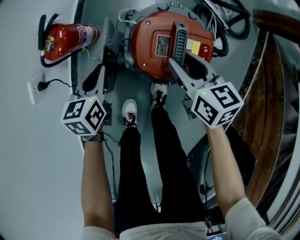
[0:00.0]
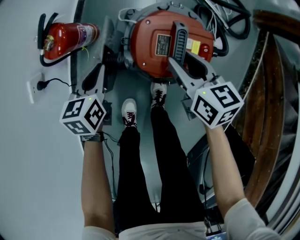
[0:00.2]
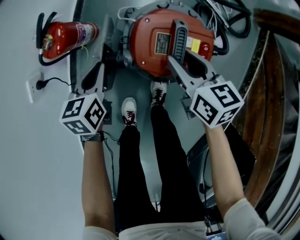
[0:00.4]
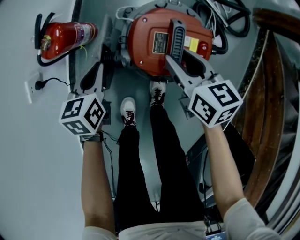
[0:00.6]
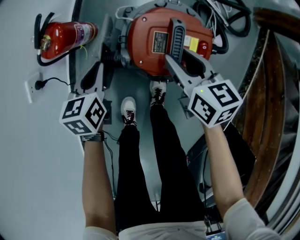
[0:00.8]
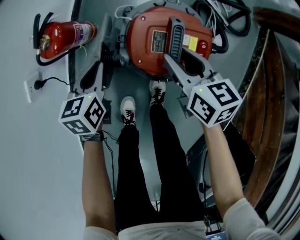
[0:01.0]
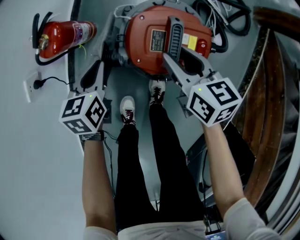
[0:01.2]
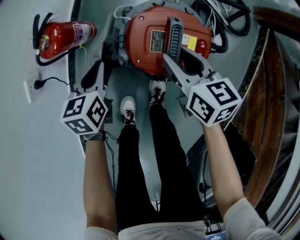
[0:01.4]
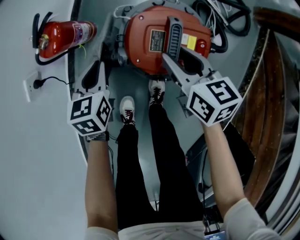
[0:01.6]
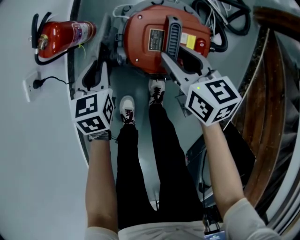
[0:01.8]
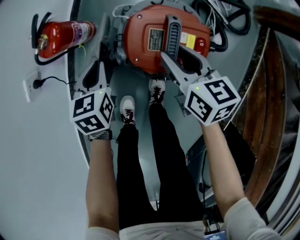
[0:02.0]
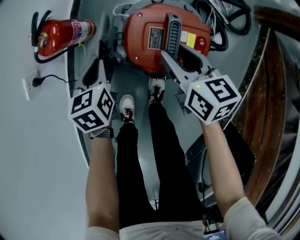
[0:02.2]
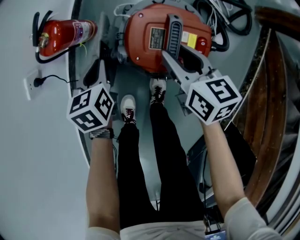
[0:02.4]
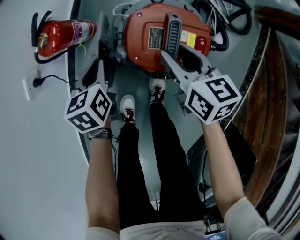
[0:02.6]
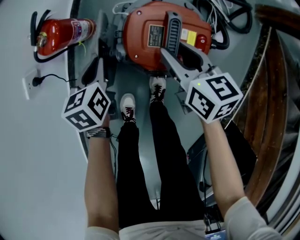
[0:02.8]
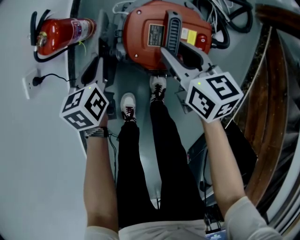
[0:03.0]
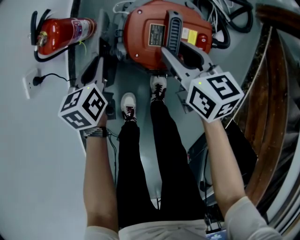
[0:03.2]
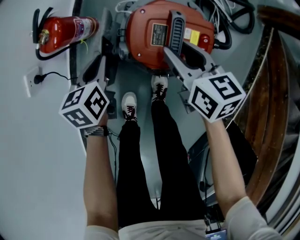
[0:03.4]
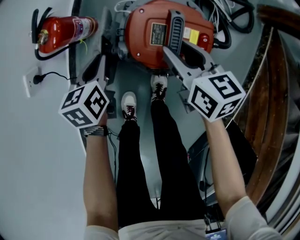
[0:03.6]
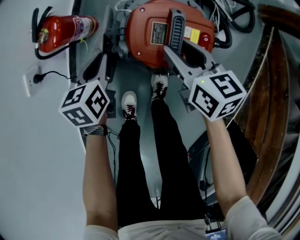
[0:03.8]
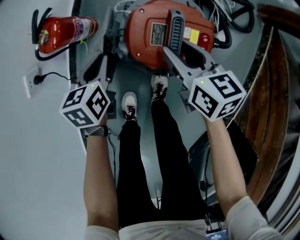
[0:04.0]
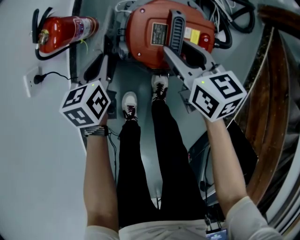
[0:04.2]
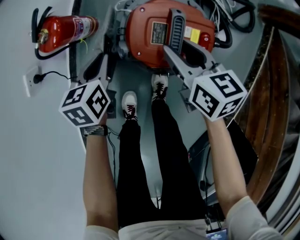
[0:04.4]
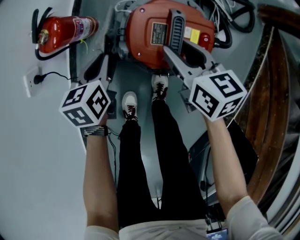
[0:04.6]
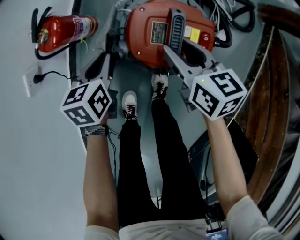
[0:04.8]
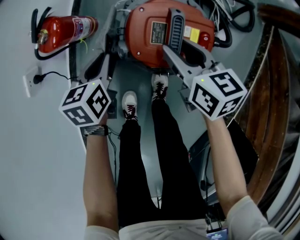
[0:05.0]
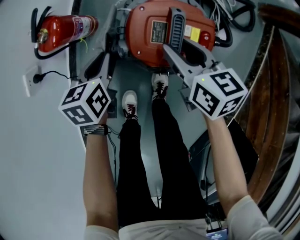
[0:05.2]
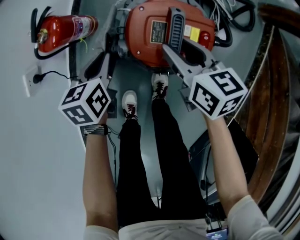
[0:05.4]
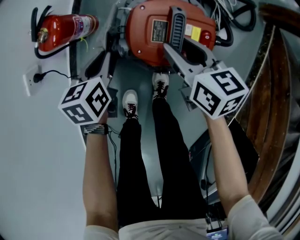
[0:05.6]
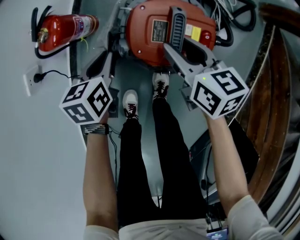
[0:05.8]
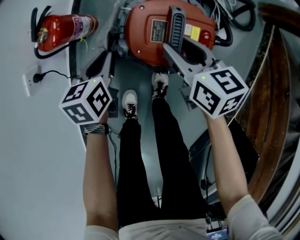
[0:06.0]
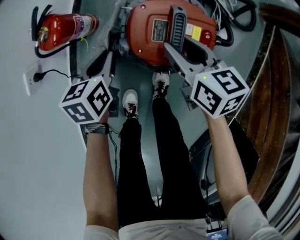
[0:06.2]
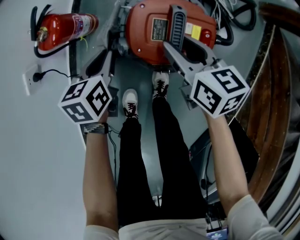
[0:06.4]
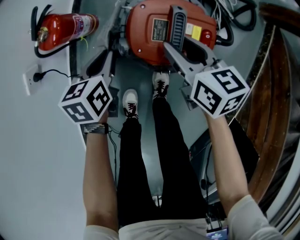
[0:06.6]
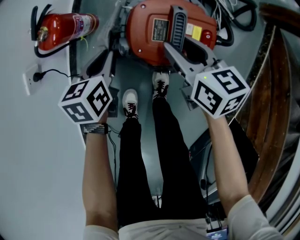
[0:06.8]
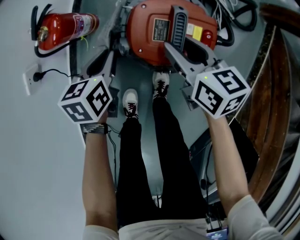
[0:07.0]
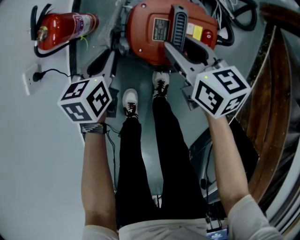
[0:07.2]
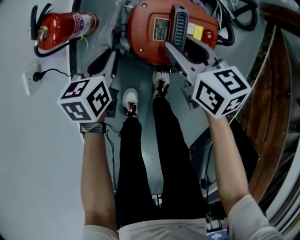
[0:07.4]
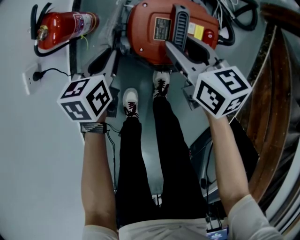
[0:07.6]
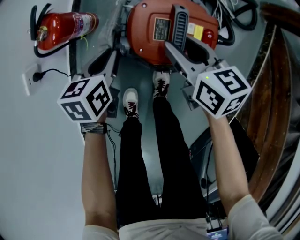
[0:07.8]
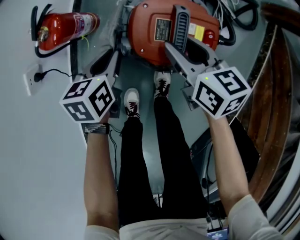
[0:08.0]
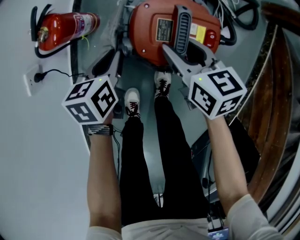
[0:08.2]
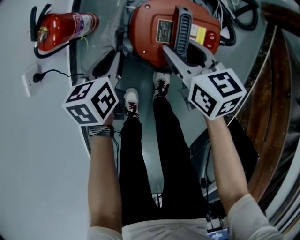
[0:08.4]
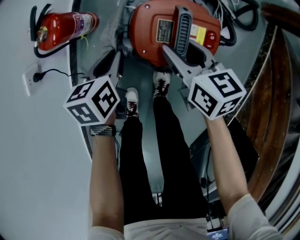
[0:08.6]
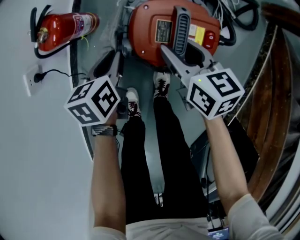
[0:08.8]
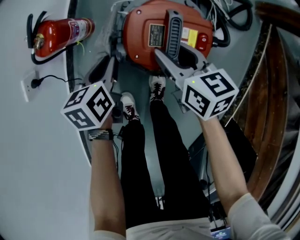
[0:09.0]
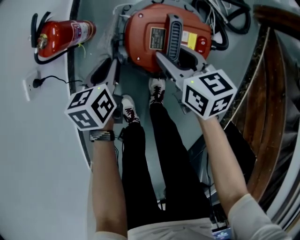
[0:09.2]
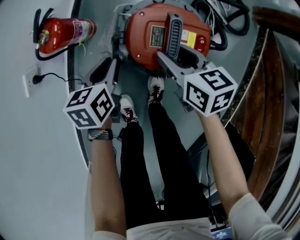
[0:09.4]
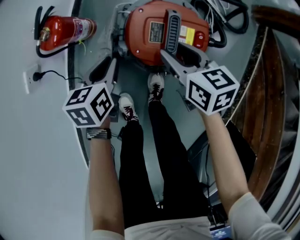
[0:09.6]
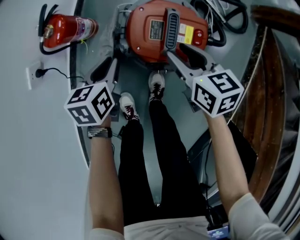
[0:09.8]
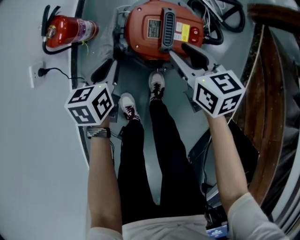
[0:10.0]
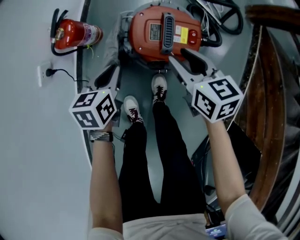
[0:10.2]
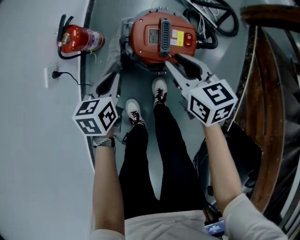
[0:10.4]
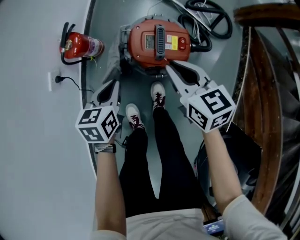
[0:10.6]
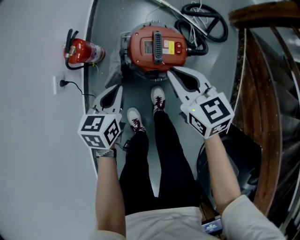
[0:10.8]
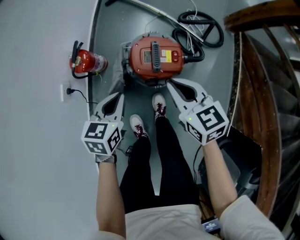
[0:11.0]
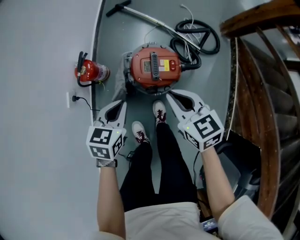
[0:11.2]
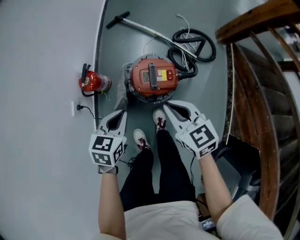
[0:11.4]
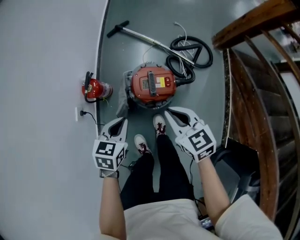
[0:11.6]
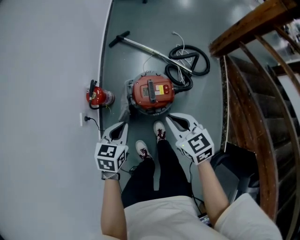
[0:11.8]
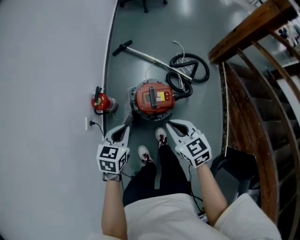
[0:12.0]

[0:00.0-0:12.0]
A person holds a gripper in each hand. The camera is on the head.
0:00.0 to 0:03.0: The grippers make only small movements.
0:03.0 to 0:04.4: Neither gripper changes place.
0:04.4 to 0:06.0: Both grippers stay put.
0:06.0 to 0:09.0: The grippers make only small movements.
0:09.0 to 0:10.4: The left gripper is displaced upward and backward by about 10 cm. The right gripper shifts some 10 cm upward.
0:10.4 to 0:12.0: Both grippers travel together upward, about 25 cm. The right gripper closes up; the left gripper swivels roughly 30 degrees.

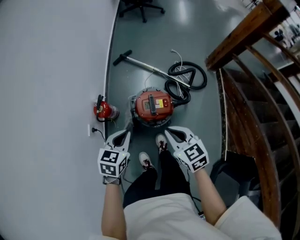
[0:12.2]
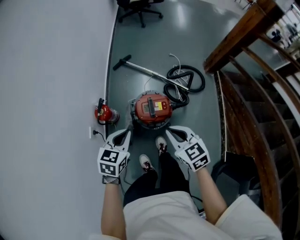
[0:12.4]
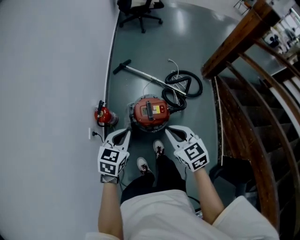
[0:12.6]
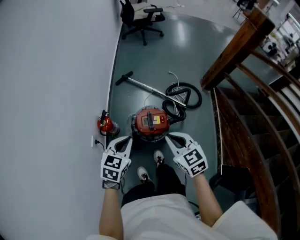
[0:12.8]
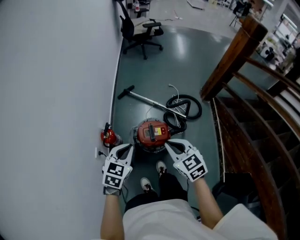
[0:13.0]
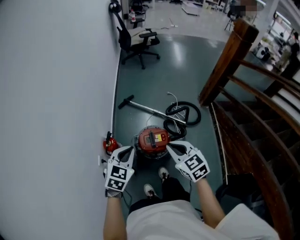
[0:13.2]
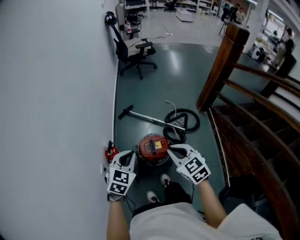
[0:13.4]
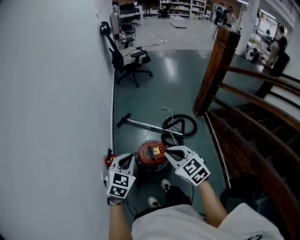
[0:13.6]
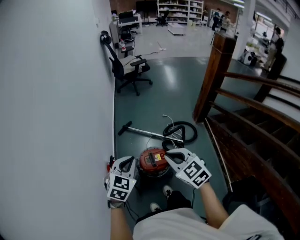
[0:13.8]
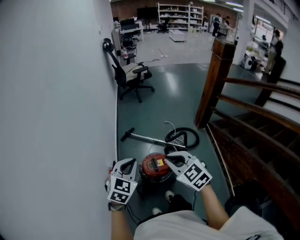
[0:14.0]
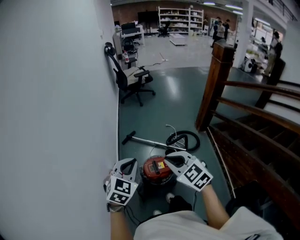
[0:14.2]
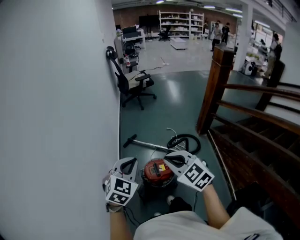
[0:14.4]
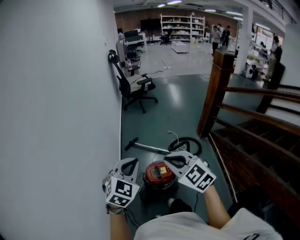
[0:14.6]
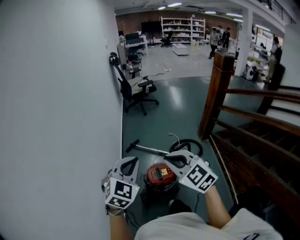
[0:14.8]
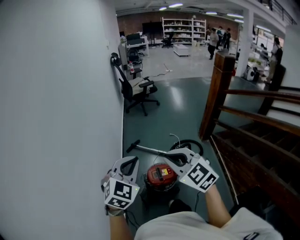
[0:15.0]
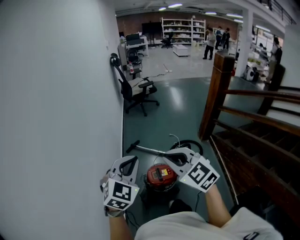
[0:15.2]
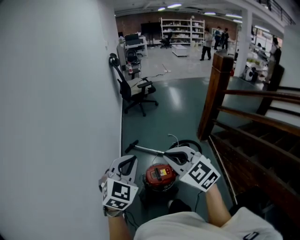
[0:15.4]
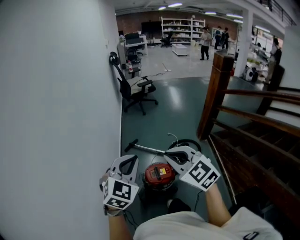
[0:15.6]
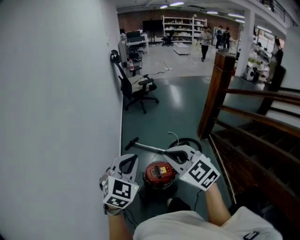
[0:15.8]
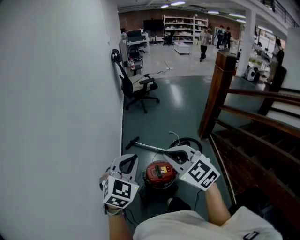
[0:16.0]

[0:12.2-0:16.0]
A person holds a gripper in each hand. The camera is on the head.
0:12.2 to 0:13.4: Both grippers travel together upward, about 15 cm. The left gripper turns by roughly 30 degrees.
0:13.4 to 0:14.8: Both grippers travel together upward, some 20 cm. The right gripper turns by about 20 degrees; the left gripper turns by about 20 degrees.
0:14.8 to 0:16.0: The grippers make only small movements.

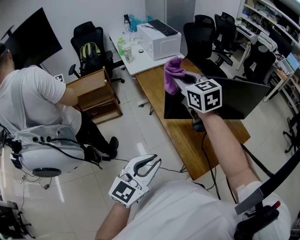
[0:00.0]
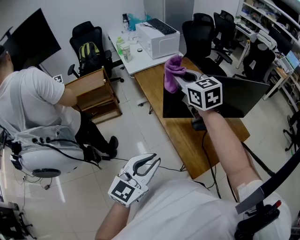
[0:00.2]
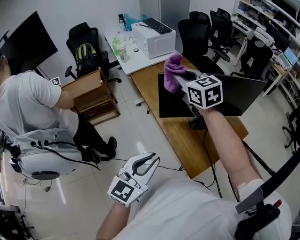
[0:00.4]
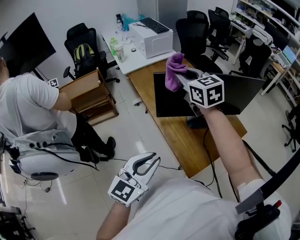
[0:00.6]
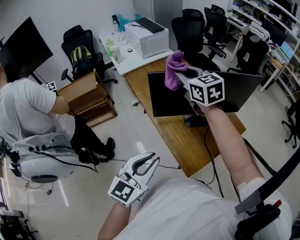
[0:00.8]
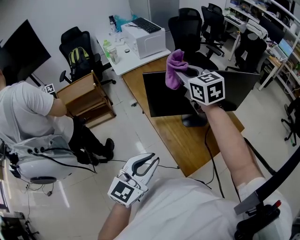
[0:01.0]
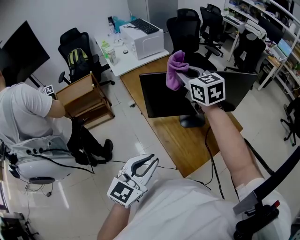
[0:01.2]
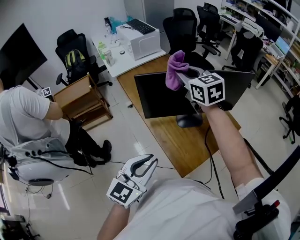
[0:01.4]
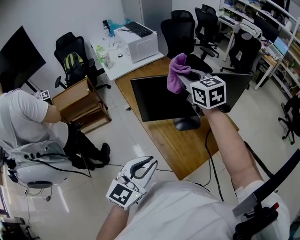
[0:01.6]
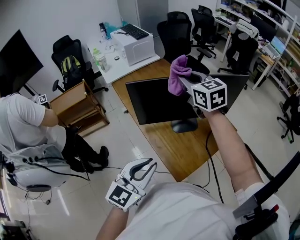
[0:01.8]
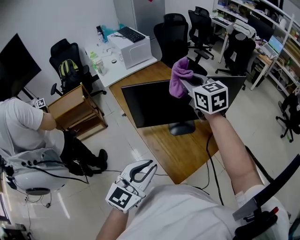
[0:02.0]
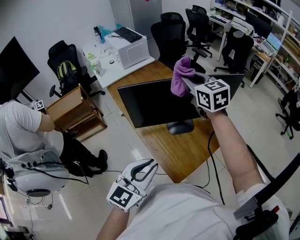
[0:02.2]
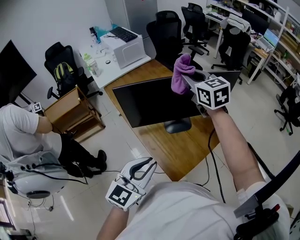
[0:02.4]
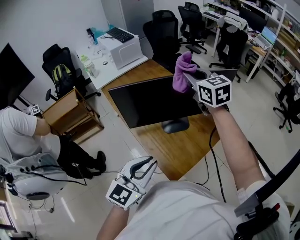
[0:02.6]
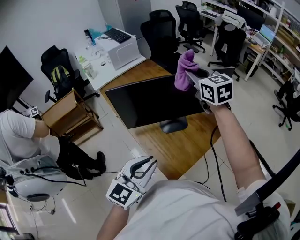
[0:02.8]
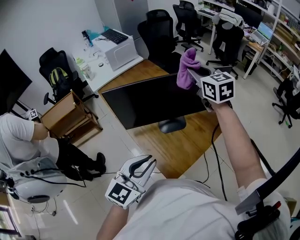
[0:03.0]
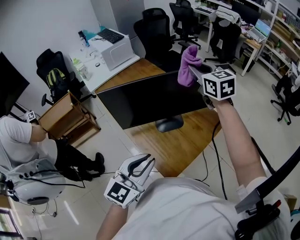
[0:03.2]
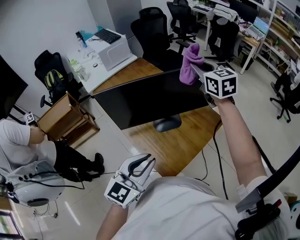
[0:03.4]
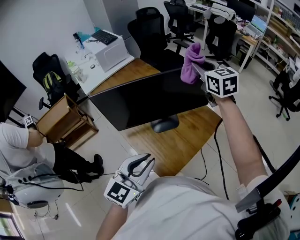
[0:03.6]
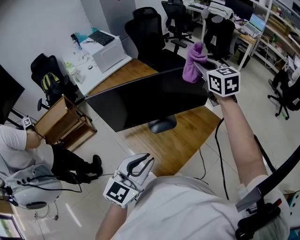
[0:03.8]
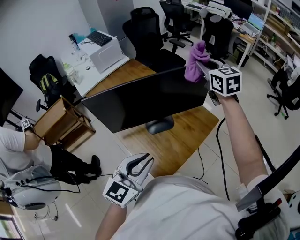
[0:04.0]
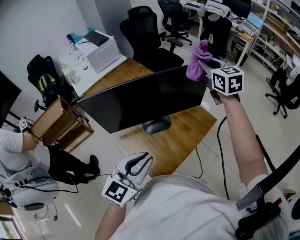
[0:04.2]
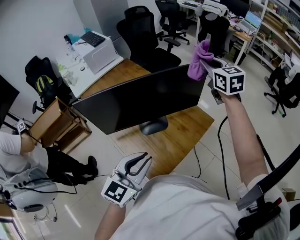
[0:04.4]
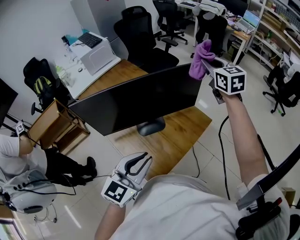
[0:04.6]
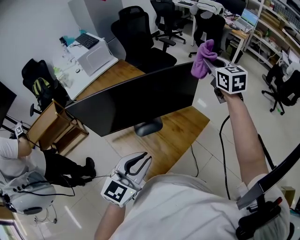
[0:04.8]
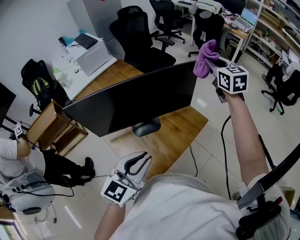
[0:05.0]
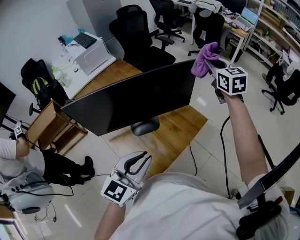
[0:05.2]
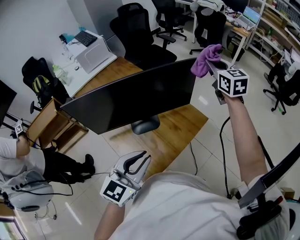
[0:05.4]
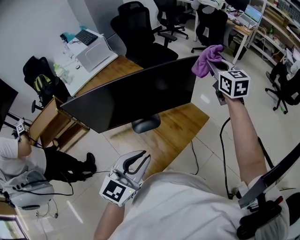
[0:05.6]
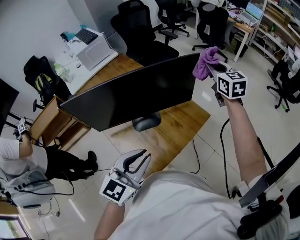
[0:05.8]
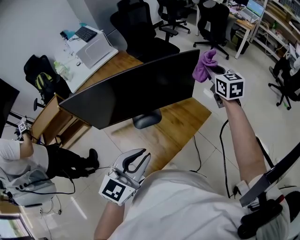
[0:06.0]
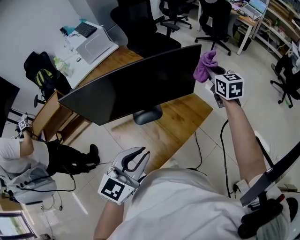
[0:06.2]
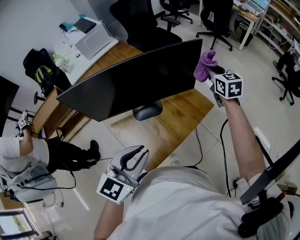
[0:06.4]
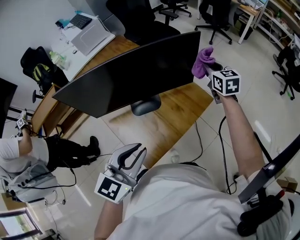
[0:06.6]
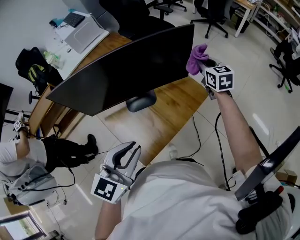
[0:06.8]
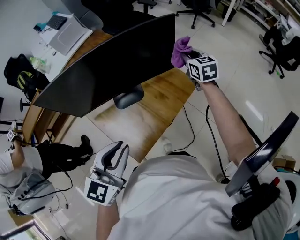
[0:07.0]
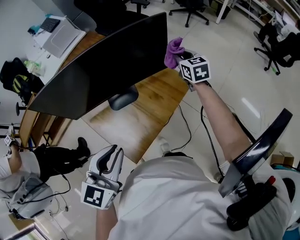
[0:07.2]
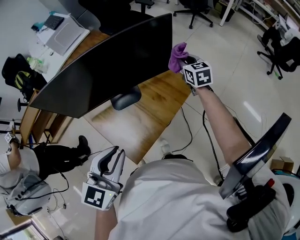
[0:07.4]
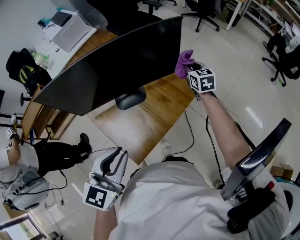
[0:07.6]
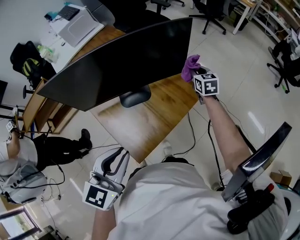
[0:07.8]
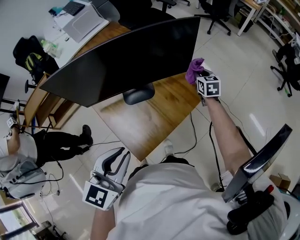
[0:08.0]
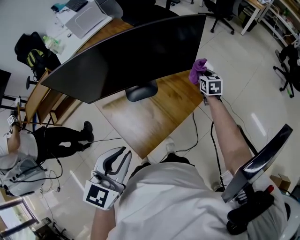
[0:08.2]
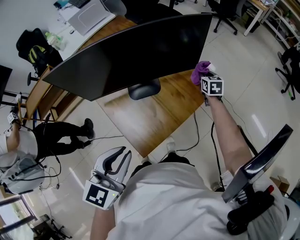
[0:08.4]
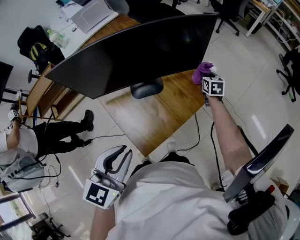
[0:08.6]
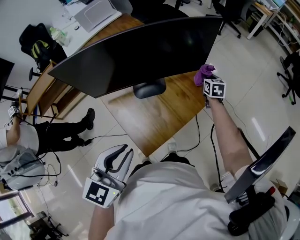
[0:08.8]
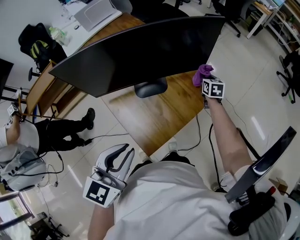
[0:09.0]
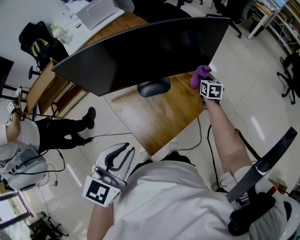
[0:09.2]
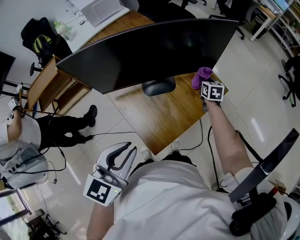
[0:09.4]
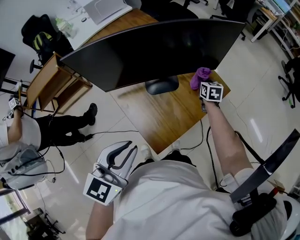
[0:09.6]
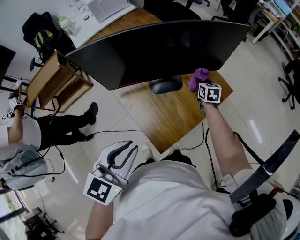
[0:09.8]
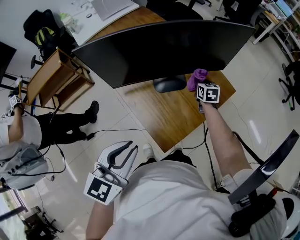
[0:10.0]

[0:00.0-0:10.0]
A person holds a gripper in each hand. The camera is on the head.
0:00.0 to 0:01.4: The left gripper is displaced to the right by roughly 5 cm. The right gripper shifts approximately 10 cm to the right.
0:01.4 to 0:02.8: The right gripper travels to the right by about 15 cm, while the left gripper travels to the right by about 5 cm.
0:02.8 to 0:04.2: The right gripper shifts some 15 cm to the right, while the left gripper shifts some 5 cm to the right.
0:04.2 to 0:05.8: The left gripper shifts approximately 5 cm to the right. The right gripper heads to the right and downward, covering about 10 cm.
0:05.8 to 0:07.2: The right gripper moves downward, approximately 15 cm.
0:07.2 to 0:08.6: The right gripper travels downward by roughly 15 cm. The left gripper moves roughly 5 cm.
0:08.6 to 0:10.0: The right gripper goes approximately 15 cm to the left and backward. The left gripper shifts about 10 cm to the left.
